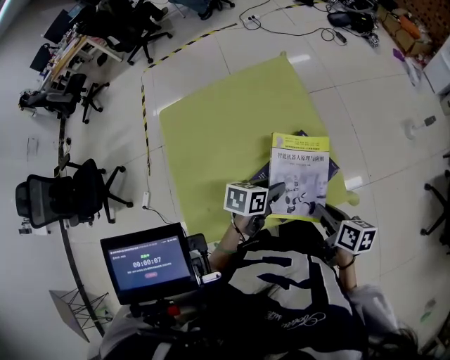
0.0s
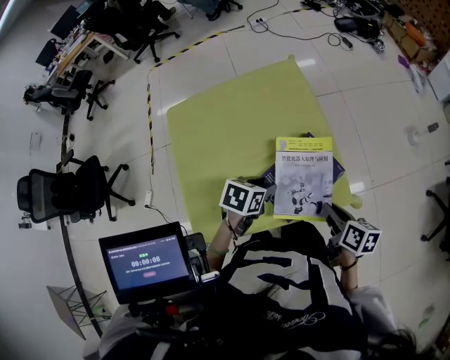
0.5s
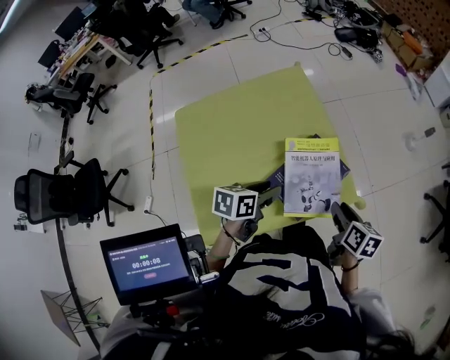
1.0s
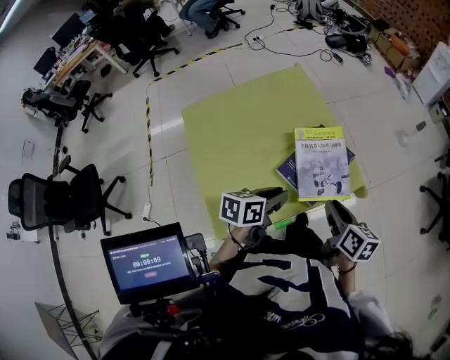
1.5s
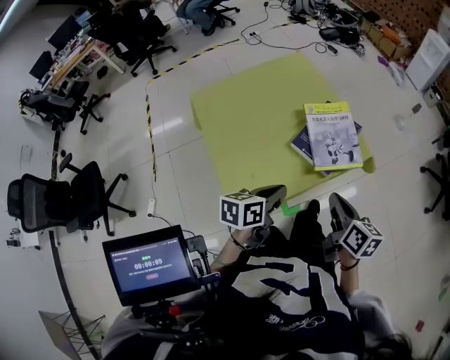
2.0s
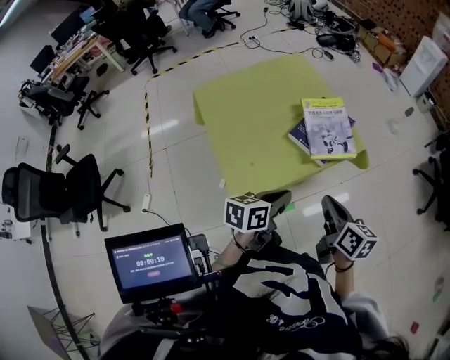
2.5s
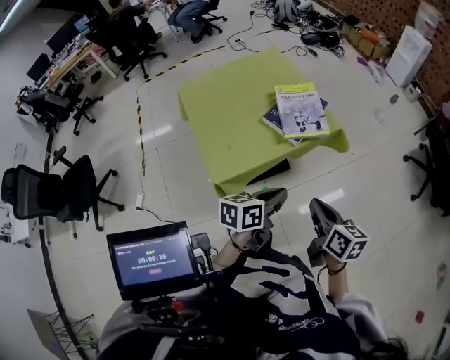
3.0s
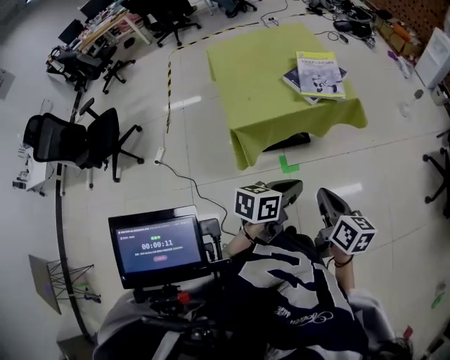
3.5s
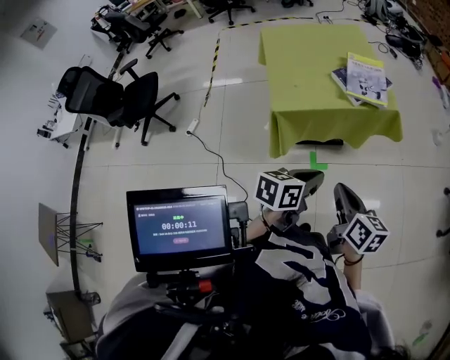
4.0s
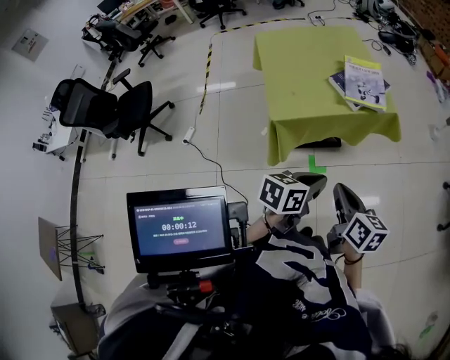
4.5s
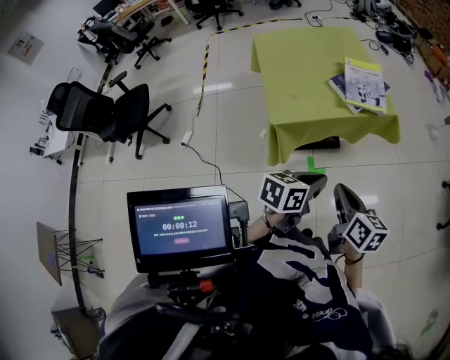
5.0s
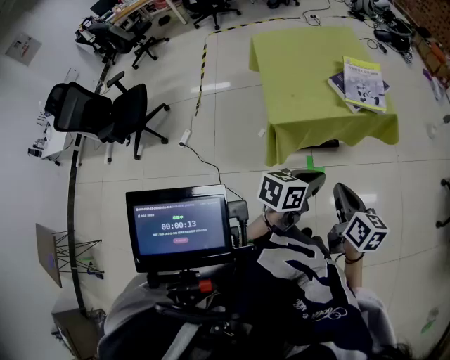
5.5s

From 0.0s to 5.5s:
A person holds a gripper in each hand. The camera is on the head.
From 0.0s to 2.0s: The left gripper goes some 25 cm backward and to the left, and closes. The right gripper shifts roughly 20 cm backward, to the left and upward, and turns by some 30 degrees.
From 2.0s to 3.5s: The left gripper heads backward and to the right, covering about 35 cm, while the right gripper is displaced backward by roughly 30 cm.
From 3.5s to 5.5s: The two grippers go roughly 5 cm to the left.

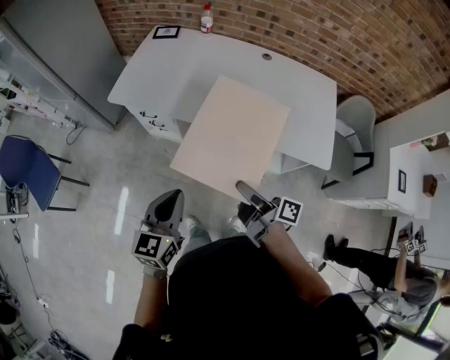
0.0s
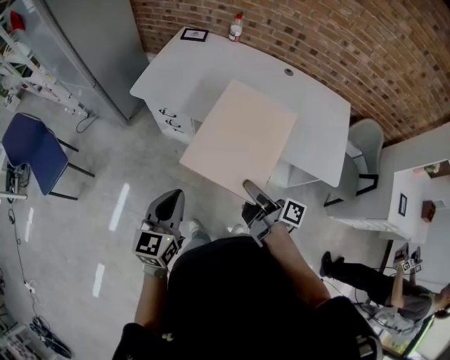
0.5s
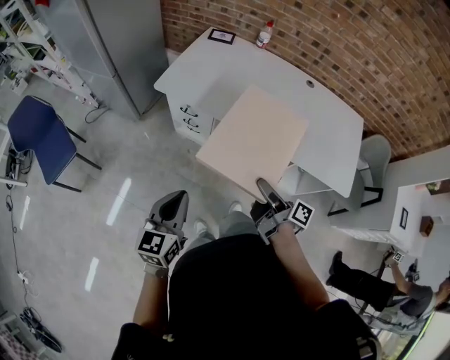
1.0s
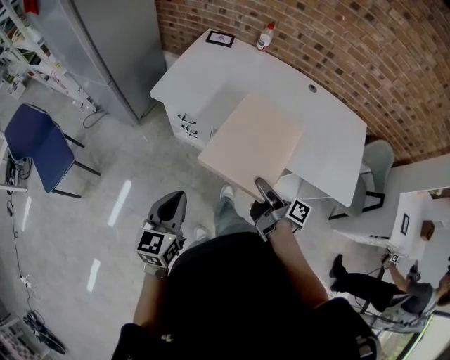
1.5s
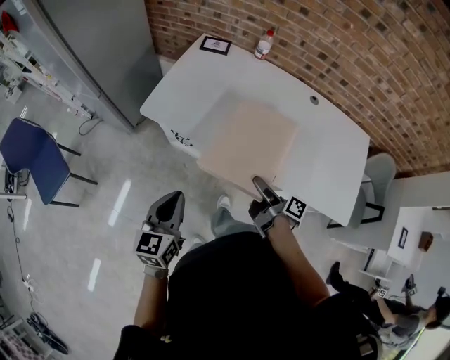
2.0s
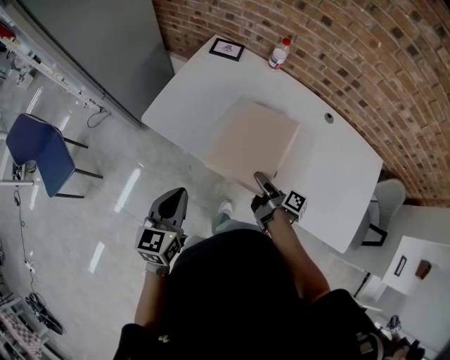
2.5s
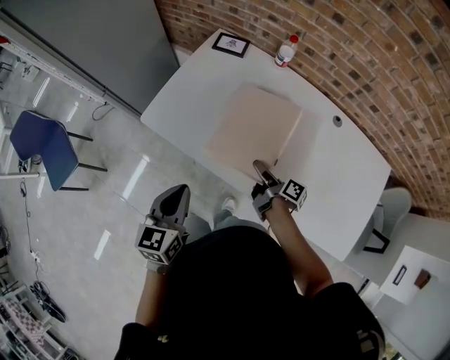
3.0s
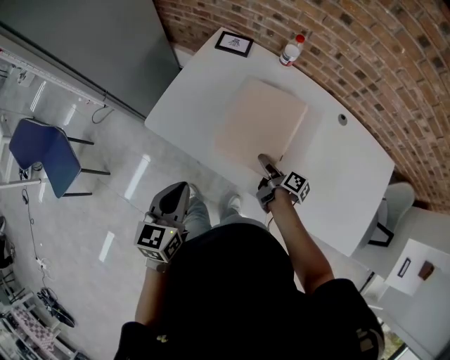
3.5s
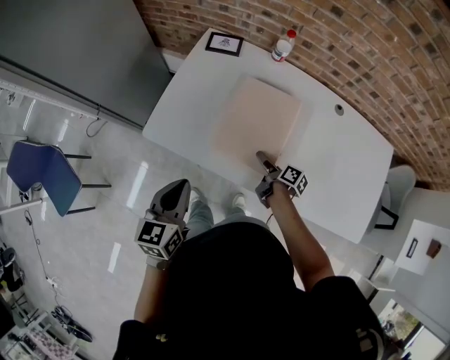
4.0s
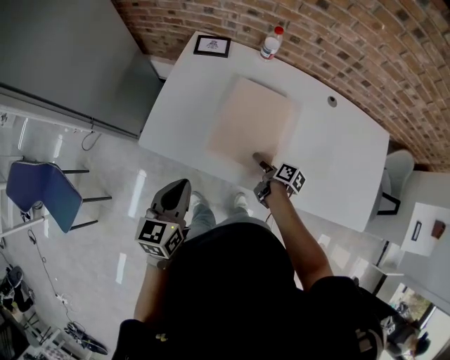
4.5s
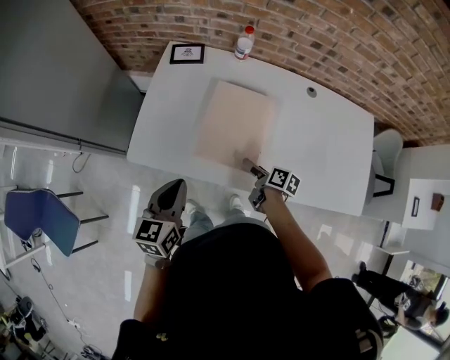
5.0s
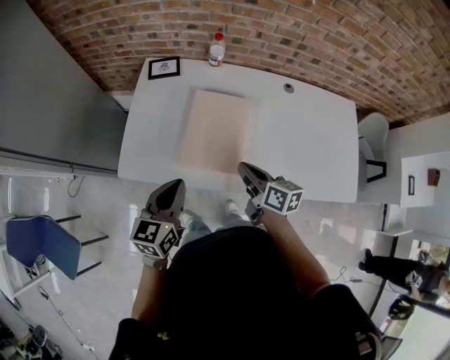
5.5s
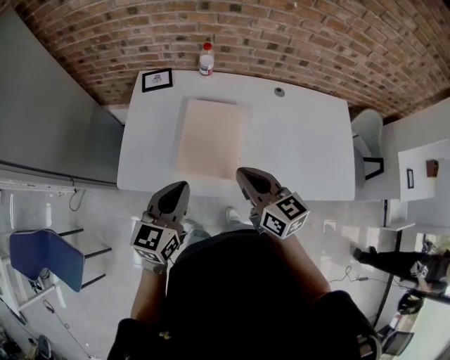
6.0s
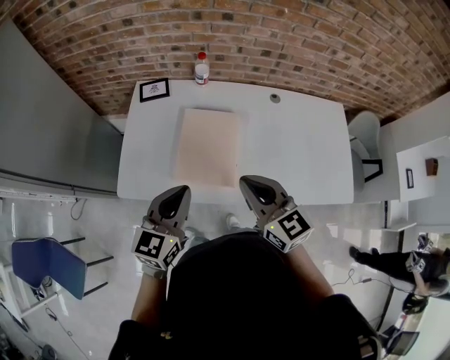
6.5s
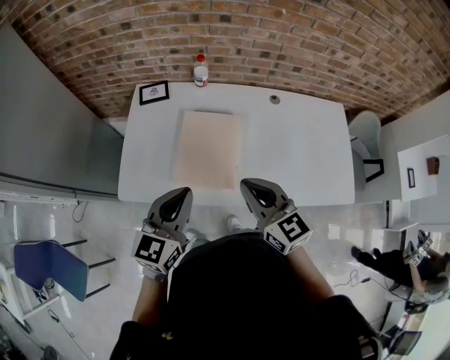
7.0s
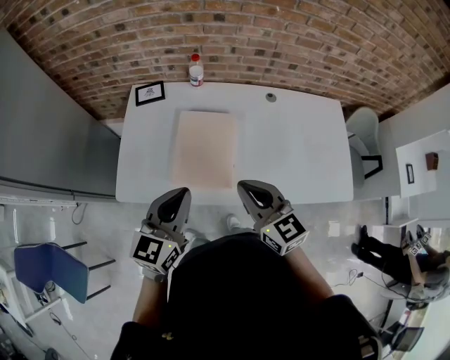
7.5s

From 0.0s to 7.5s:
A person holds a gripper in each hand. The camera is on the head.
From 0.0s to 2.0s: The left gripper travels forward and to the left by approximately 20 cm. Meanwhile the right gripper goes approximately 25 cm forward and downward.
From 2.0s to 4.0s: The right gripper travels forward and downward by some 25 cm, and changes its angle by some 20 degrees. The left gripper goes some 20 cm forward.
From 4.0s to 5.5s: The right gripper shifts some 20 cm upward, swivels about 30 degrees, and closes; the left gripper is displaced to the right by roughly 5 cm.
From 5.5s to 7.5s: The left gripper goes roughly 10 cm upward and to the right. The right gripper is displaced upward by roughly 15 cm, and rolls counterclockwise, seen from behind, by roughly 40 degrees.

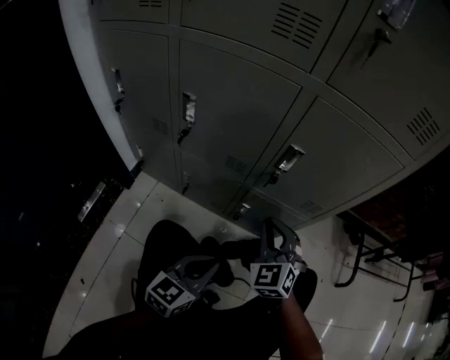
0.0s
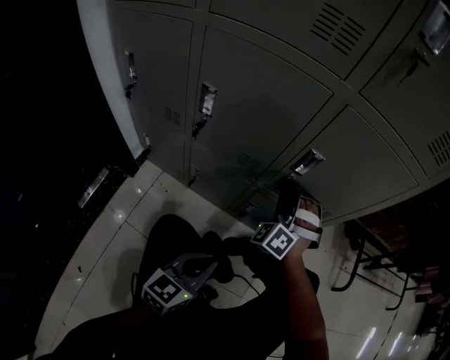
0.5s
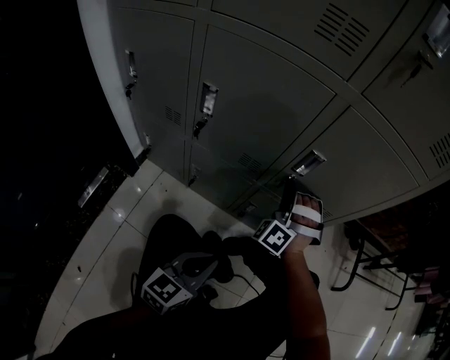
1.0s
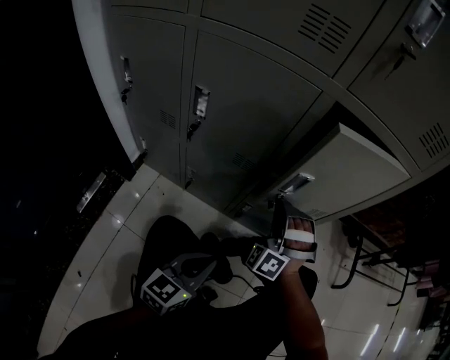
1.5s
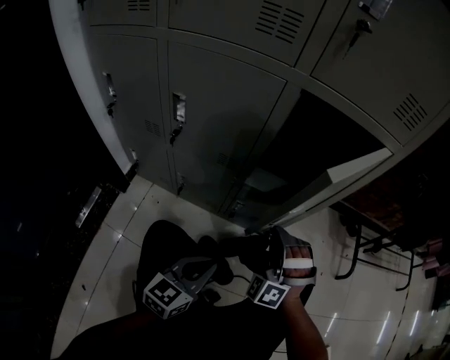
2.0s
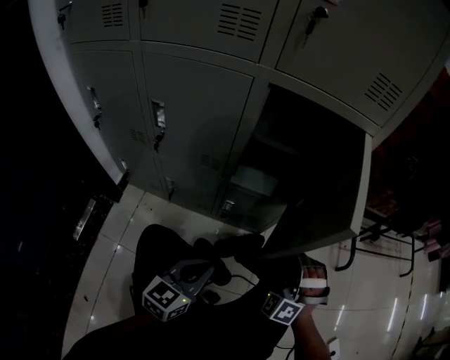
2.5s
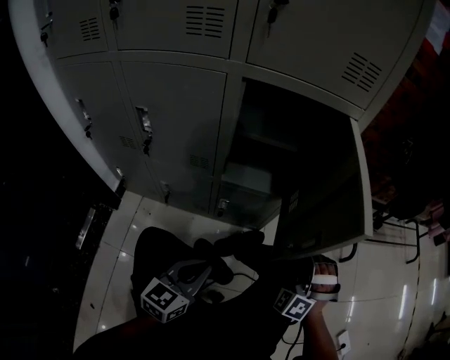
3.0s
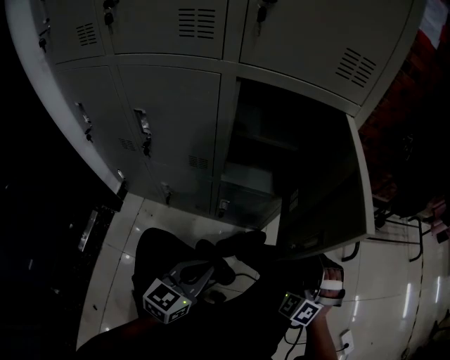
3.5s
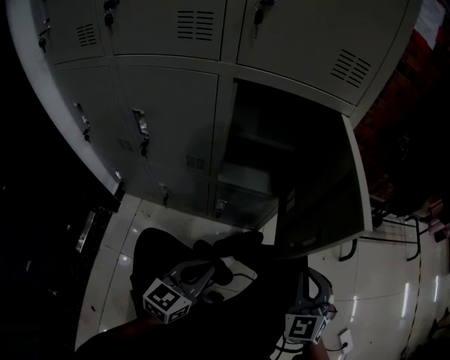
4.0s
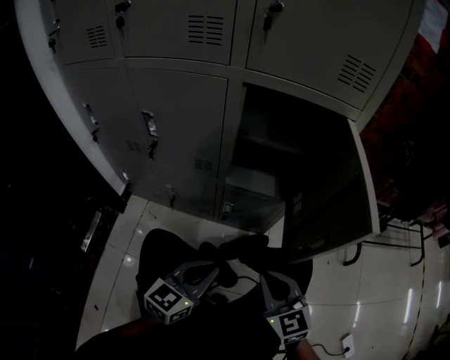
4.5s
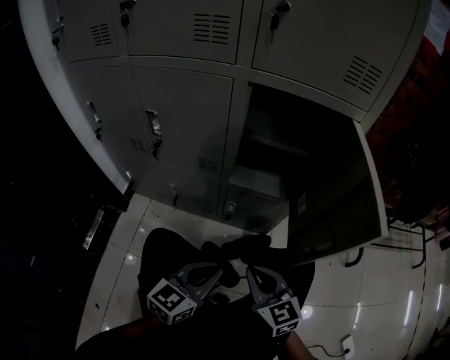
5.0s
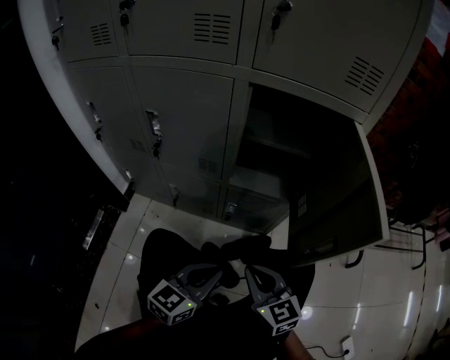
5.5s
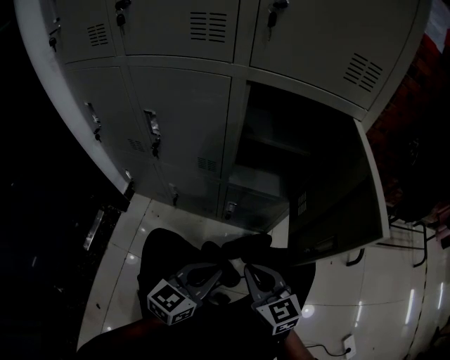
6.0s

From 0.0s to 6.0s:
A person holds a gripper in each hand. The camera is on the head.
From 0.0s to 2.0s: The right gripper travels forward and back again, about 10 cm each way, and changes its angle by about 40 degrees.
From 2.0s to 4.0s: The left gripper changes place by approximately 5 cm. Meanwhile the right gripper is displaced to the right by roughly 20 cm, and rotates around the line of its fingers by about 40 degrees, clockwise from behind.
From 4.0s to 6.0s: The right gripper moves to the left, approximately 15 cm, and changes its angle by roughly 50 degrees.

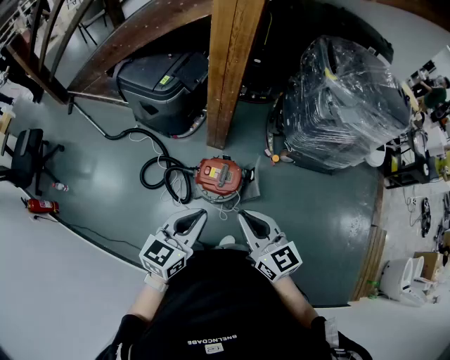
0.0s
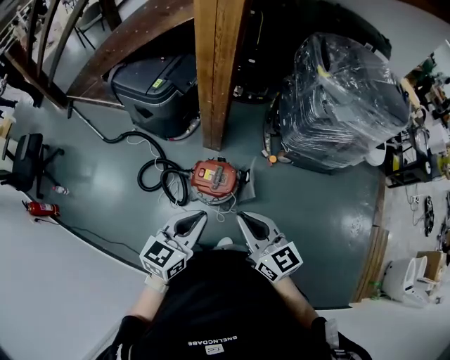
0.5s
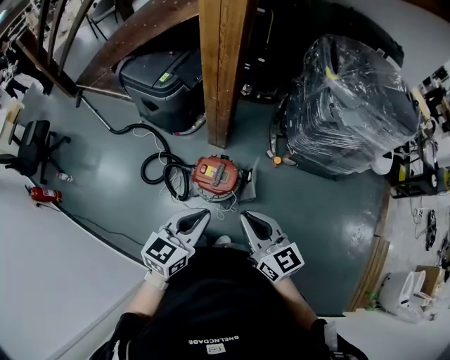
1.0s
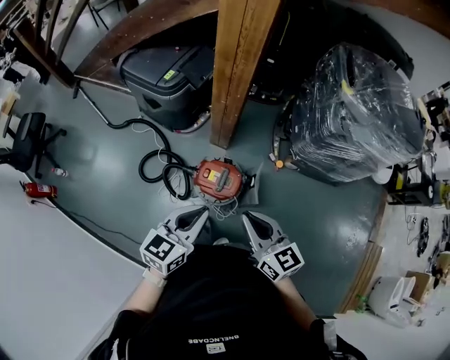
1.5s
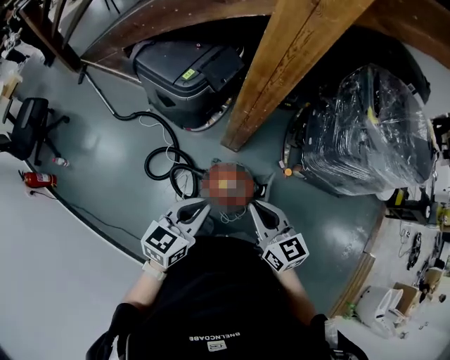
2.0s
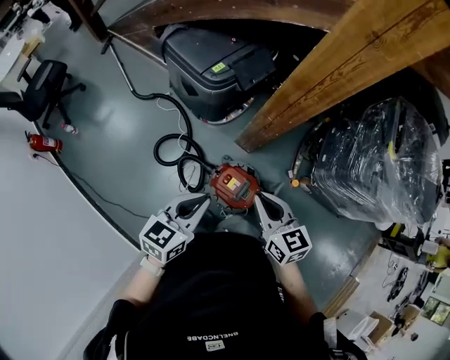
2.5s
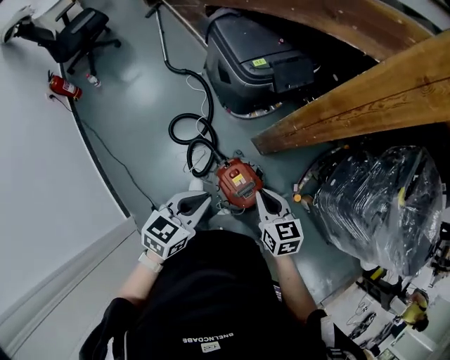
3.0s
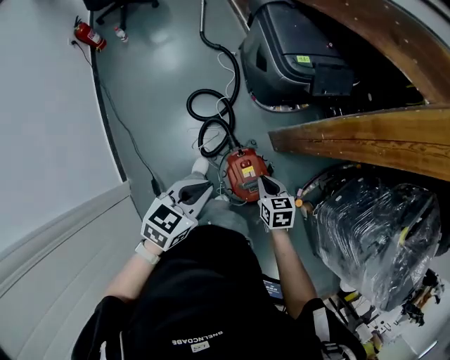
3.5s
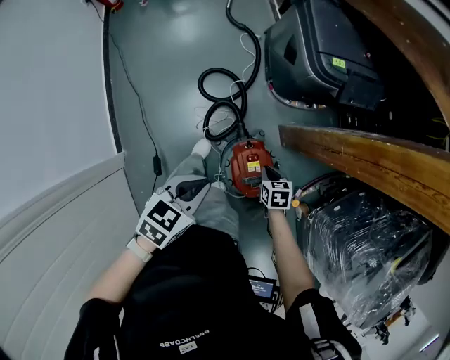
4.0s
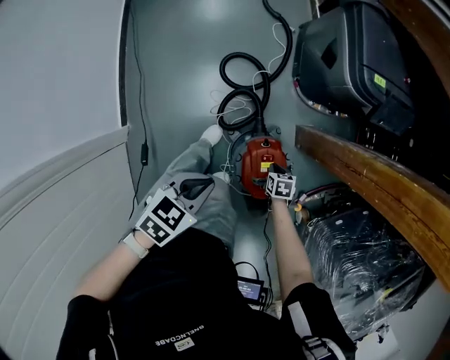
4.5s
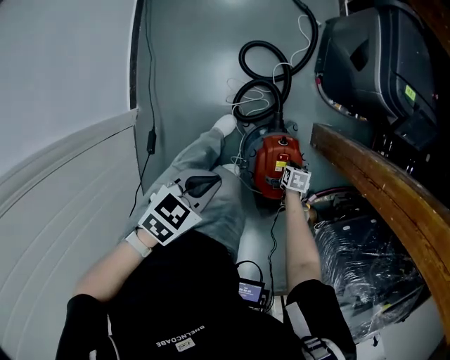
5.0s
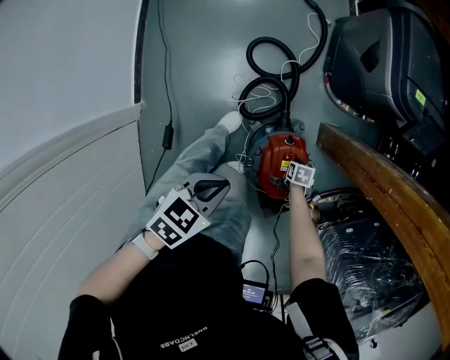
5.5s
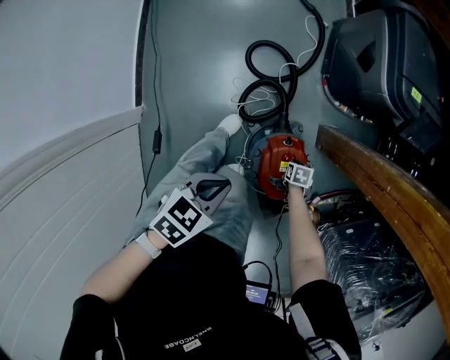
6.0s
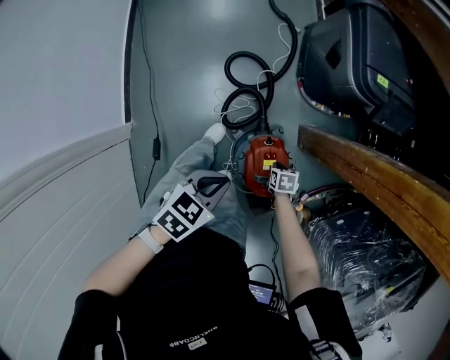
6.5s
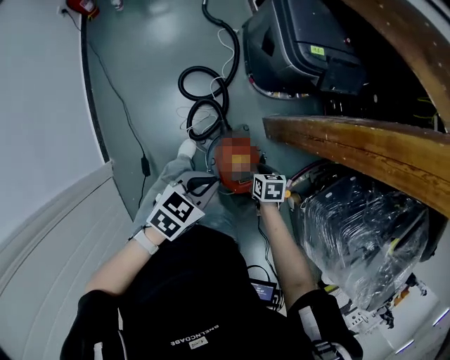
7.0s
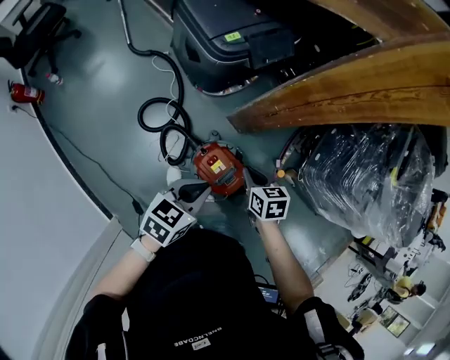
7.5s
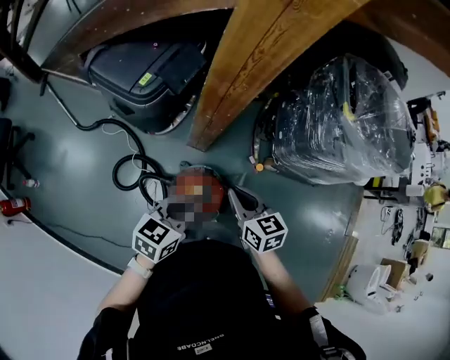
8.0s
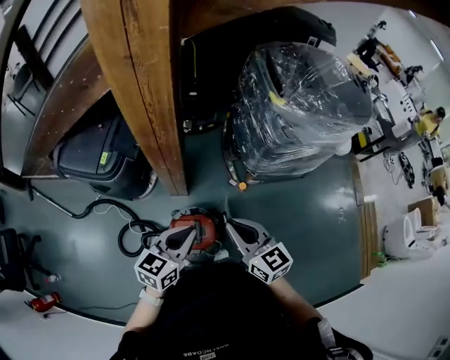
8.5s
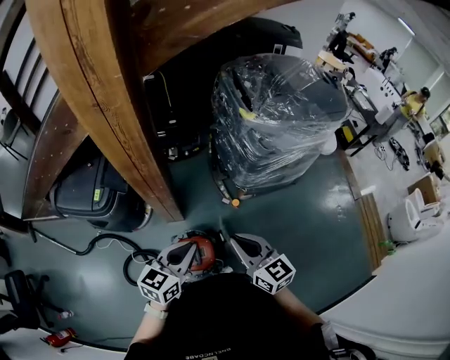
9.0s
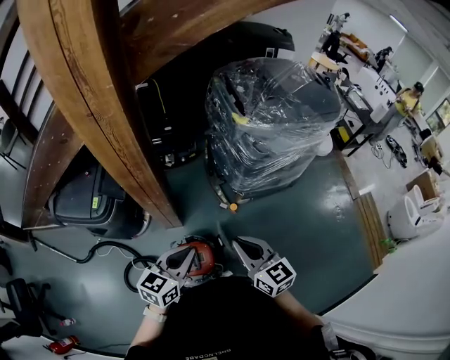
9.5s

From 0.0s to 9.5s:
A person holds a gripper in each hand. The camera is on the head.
From 0.0s to 2.0s: Both grippers move forward, some 15 cm.
From 2.0s to 4.0s: The left gripper is displaced downward by about 15 cm, and turns by roughly 50 degrees. The right gripper heads downward, covering some 40 cm, and angles its fingers downward, by roughly 50 degrees.
From 4.0s to 5.5s: The right gripper heads downward, covering some 25 cm, and rotates approximately 20 degrees. The left gripper moves downward, about 15 cm.
From 5.5s to 7.5s: The left gripper ends up approximately 25 cm from where it was, and rotates some 40 degrees. The right gripper is displaced upward by approximately 40 cm, and tips its fingers upward by some 30 degrees.
From 7.5s to 9.5s: The left gripper moves roughly 25 cm, and swivels about 40 degrees, while the right gripper moves roughly 35 cm, and tilts its fingers some 40 degrees upward.
